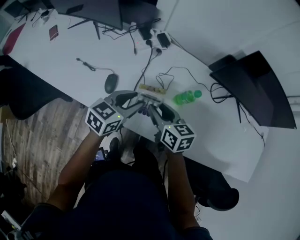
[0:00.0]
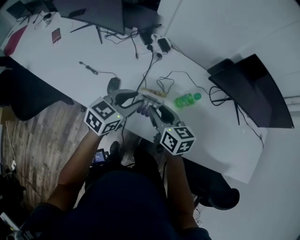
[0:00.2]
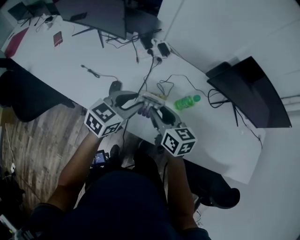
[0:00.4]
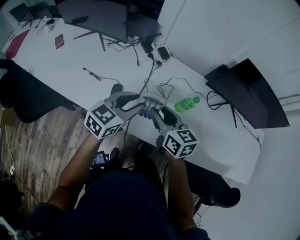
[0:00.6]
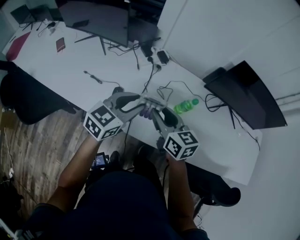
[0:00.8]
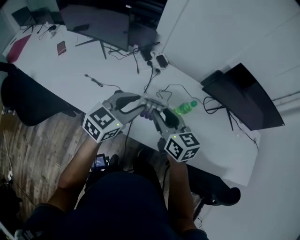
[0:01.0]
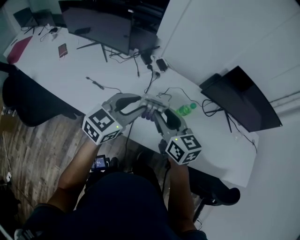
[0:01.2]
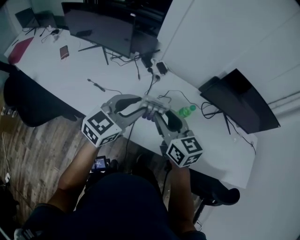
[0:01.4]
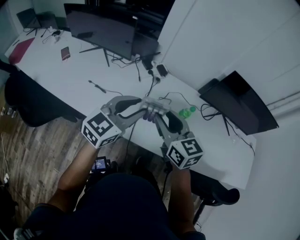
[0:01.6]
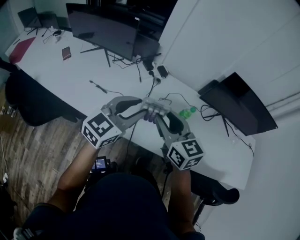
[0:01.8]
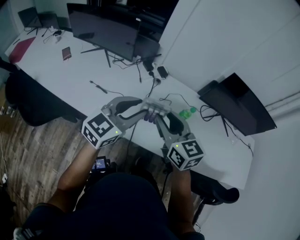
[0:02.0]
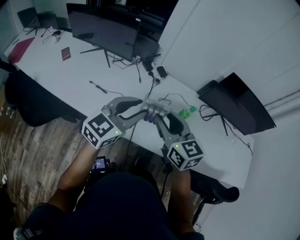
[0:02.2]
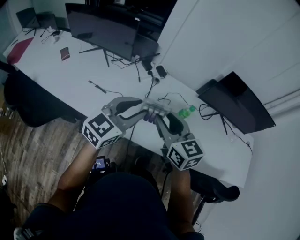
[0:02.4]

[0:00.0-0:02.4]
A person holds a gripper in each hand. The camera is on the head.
0:00.0 to 0:01.2: The grippers both shift upward by roughly 15 cm.
0:01.2 to 0:02.4: The right gripper moves some 5 cm; the left gripper changes place by some 5 cm.

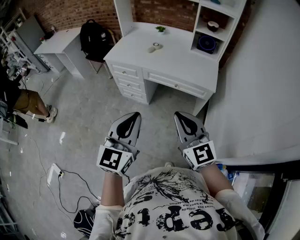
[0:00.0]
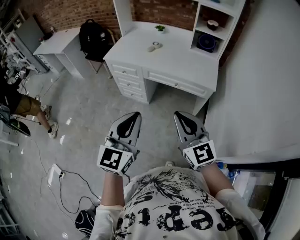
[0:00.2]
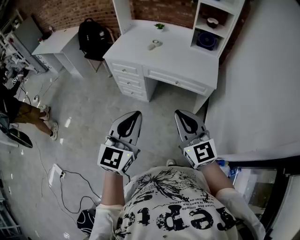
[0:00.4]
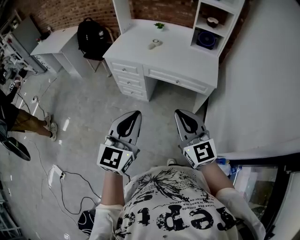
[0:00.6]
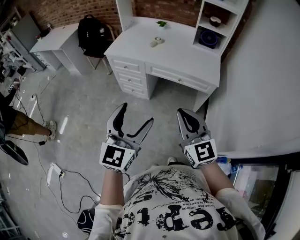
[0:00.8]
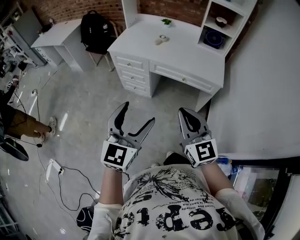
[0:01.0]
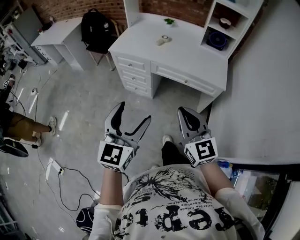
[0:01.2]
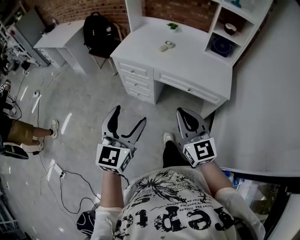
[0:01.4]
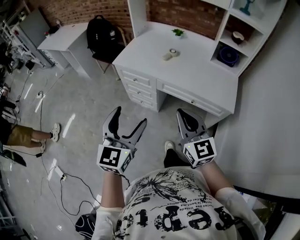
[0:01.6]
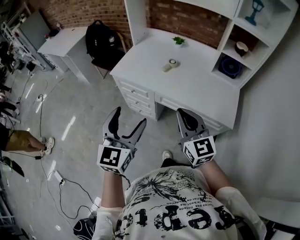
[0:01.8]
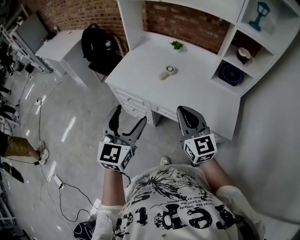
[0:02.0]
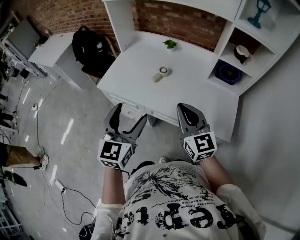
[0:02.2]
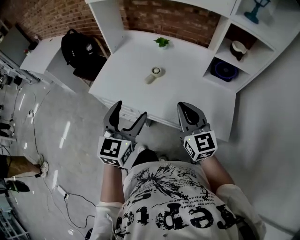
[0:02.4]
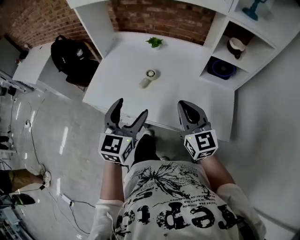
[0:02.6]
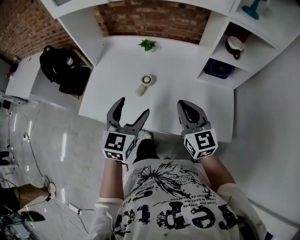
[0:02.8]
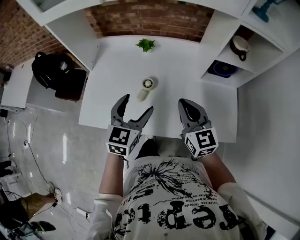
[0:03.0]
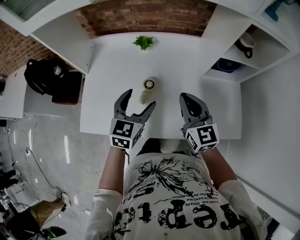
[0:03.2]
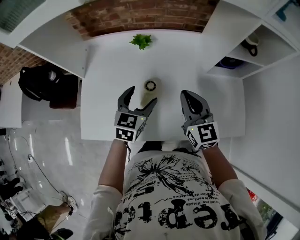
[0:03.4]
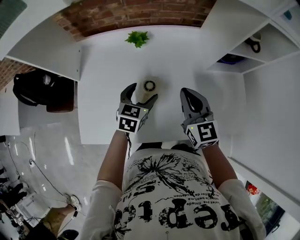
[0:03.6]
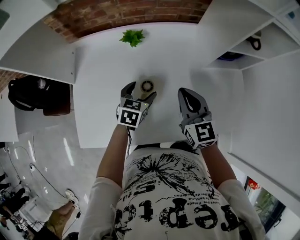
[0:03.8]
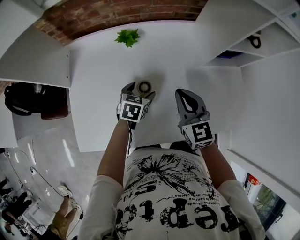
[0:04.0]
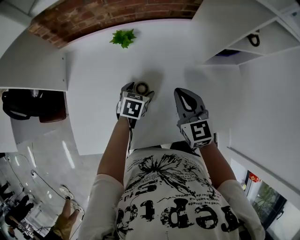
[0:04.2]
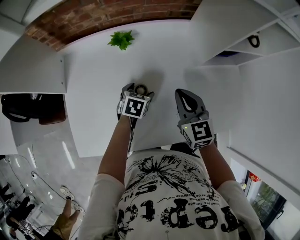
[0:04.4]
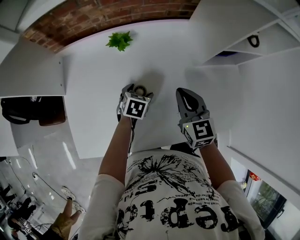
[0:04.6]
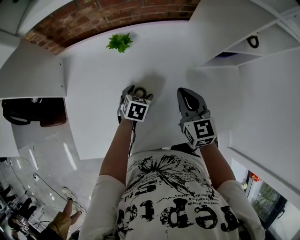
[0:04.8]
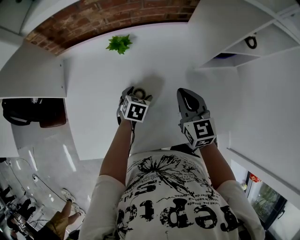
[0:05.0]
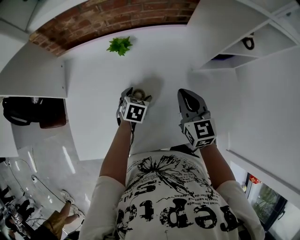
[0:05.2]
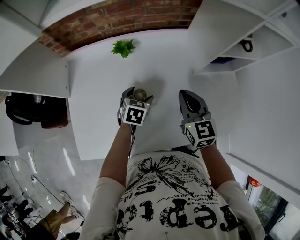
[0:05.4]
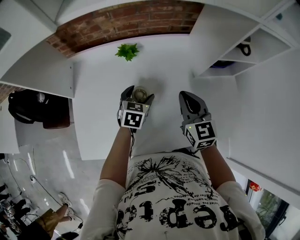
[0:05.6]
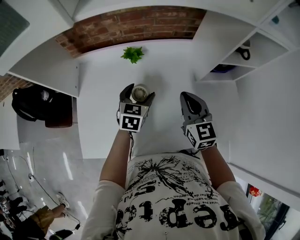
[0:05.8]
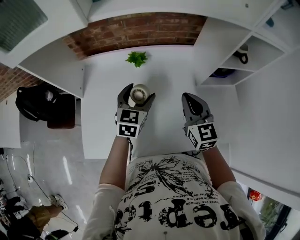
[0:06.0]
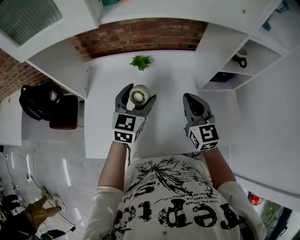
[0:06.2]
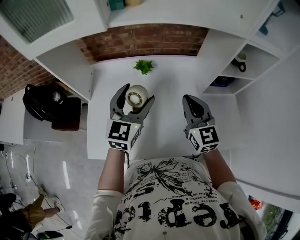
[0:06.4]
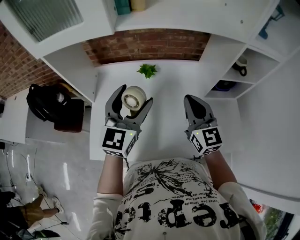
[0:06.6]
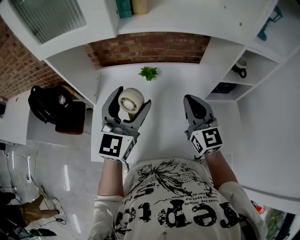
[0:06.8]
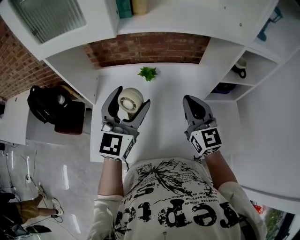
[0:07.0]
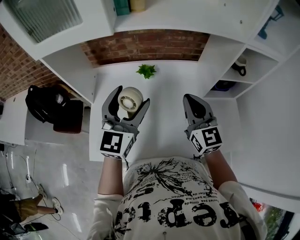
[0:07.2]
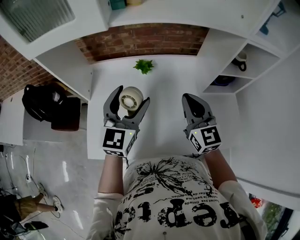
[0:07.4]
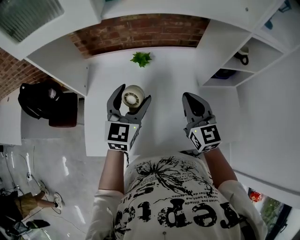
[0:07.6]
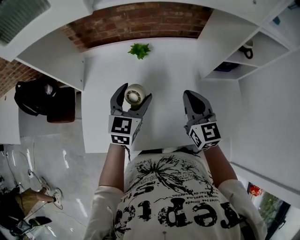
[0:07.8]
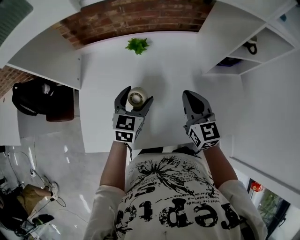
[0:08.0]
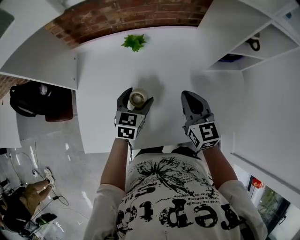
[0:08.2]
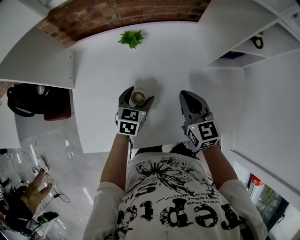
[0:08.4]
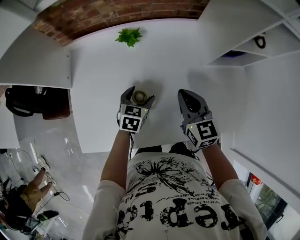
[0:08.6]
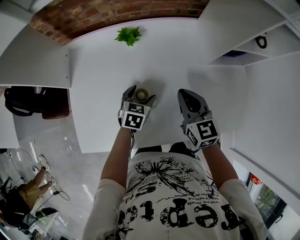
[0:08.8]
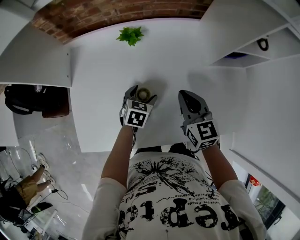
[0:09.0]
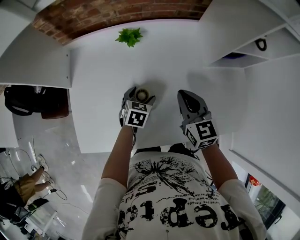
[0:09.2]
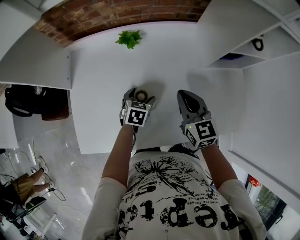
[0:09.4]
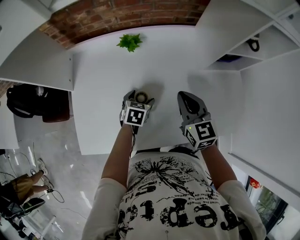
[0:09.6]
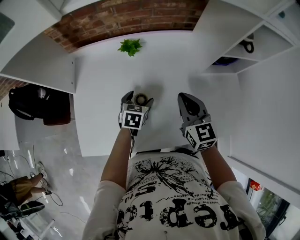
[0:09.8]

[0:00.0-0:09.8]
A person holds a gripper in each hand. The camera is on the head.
0:00.0 to 0:01.4: The left gripper shifts about 15 cm to the left and forward, and opens up. Meanwhile the right gripper heads forward and to the left, covering approximately 15 cm.
0:01.4 to 0:02.8: Both grippers are carried forward, about 60 cm.
0:02.8 to 0:04.2: The left gripper goes about 30 cm downward, and tilts its fingers some 40 degrees downward. Meanwhile the right gripper changes place by roughly 25 cm, and turns by approximately 20 degrees.
0:04.2 to 0:05.6: The left gripper goes approximately 5 cm upward.
0:05.6 to 0:07.0: The left gripper heads upward, covering roughly 30 cm, and tilts its fingers approximately 40 degrees upward. Meanwhile the right gripper shifts about 15 cm upward.
0:07.0 to 0:08.4: The right gripper heads downward, covering some 15 cm, and turns by roughly 20 degrees. The left gripper shifts approximately 30 cm downward, and angles its fingers downward, by approximately 40 degrees.

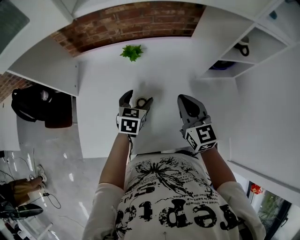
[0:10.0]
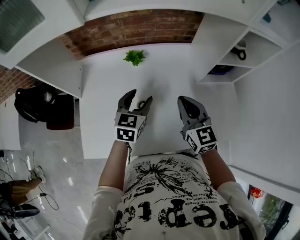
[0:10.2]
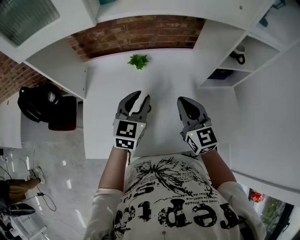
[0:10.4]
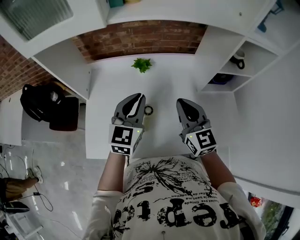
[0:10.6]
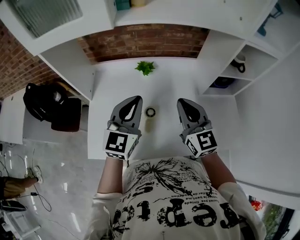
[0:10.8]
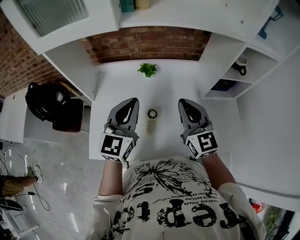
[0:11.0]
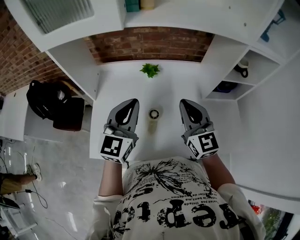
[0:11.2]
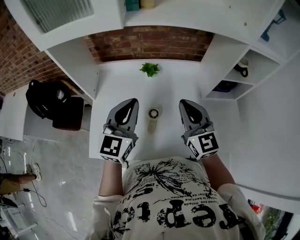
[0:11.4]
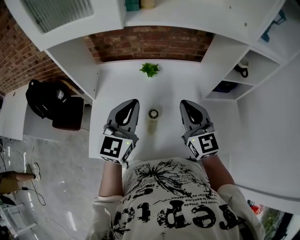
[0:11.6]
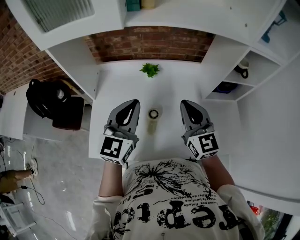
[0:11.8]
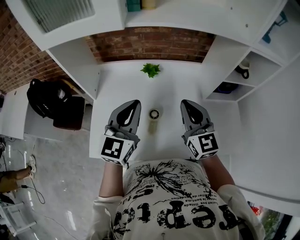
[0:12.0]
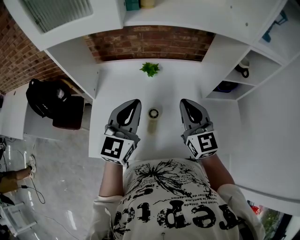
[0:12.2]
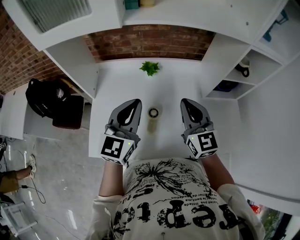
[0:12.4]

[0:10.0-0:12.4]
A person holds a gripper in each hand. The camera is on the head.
0:10.0 to 0:11.2: The right gripper goes roughly 10 cm upward and to the left; the left gripper moves upward, approximately 25 cm, points its fingers approximately 40 degrees further upward, and closes its fingers.
0:11.2 to 0:12.4: Neither gripper changes place.

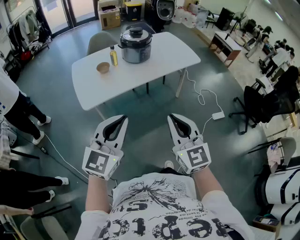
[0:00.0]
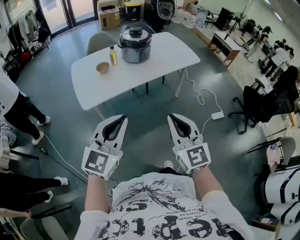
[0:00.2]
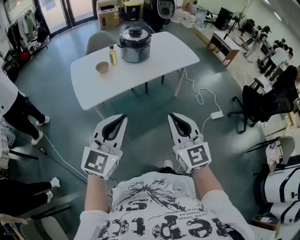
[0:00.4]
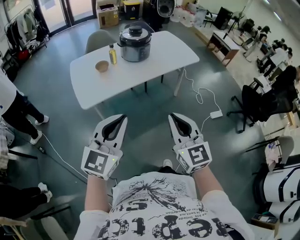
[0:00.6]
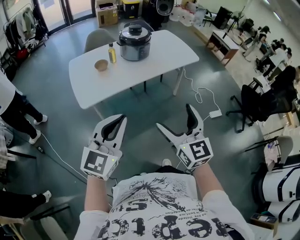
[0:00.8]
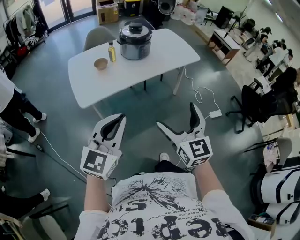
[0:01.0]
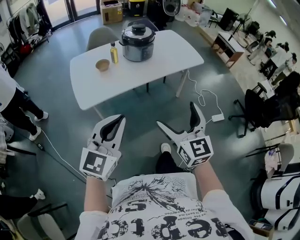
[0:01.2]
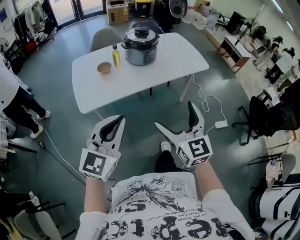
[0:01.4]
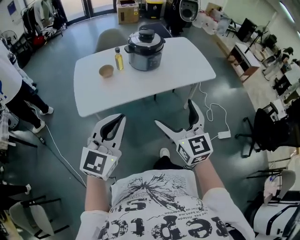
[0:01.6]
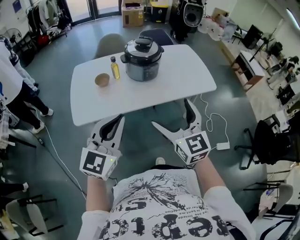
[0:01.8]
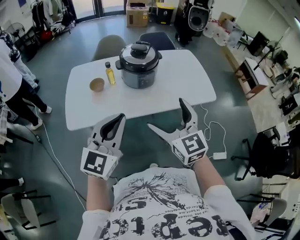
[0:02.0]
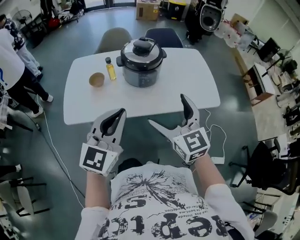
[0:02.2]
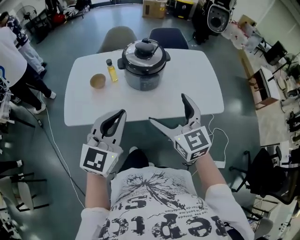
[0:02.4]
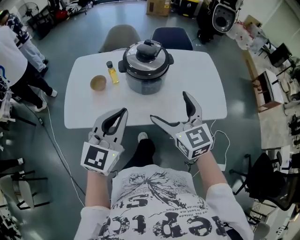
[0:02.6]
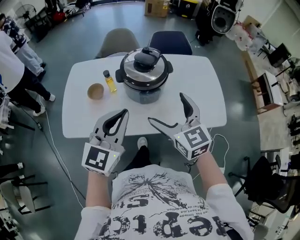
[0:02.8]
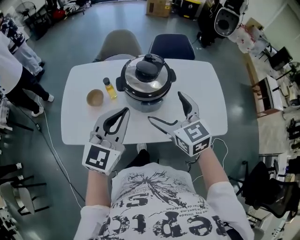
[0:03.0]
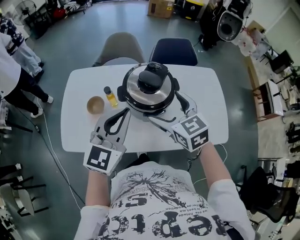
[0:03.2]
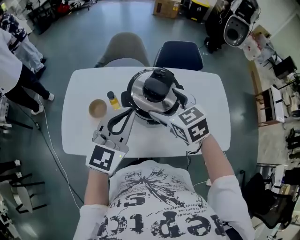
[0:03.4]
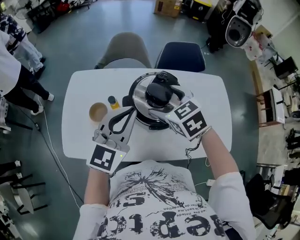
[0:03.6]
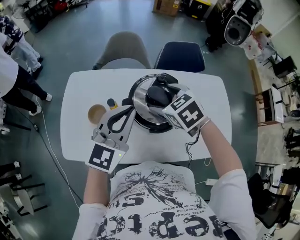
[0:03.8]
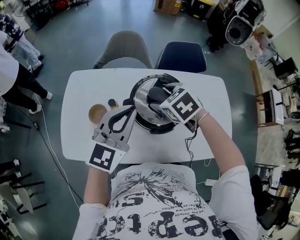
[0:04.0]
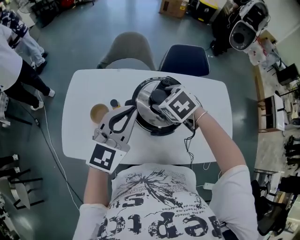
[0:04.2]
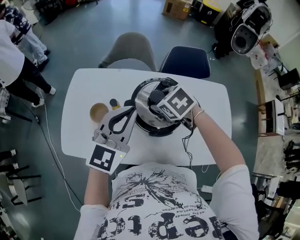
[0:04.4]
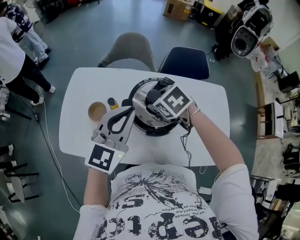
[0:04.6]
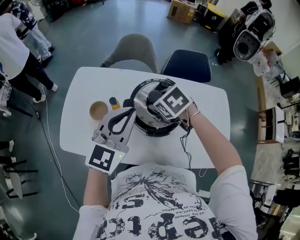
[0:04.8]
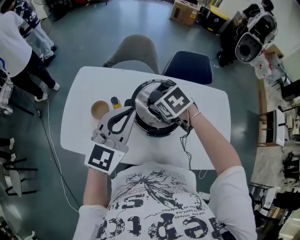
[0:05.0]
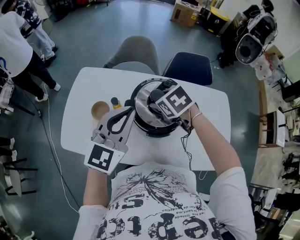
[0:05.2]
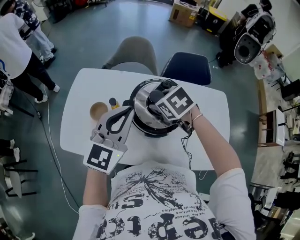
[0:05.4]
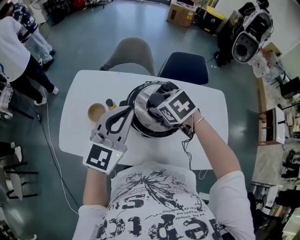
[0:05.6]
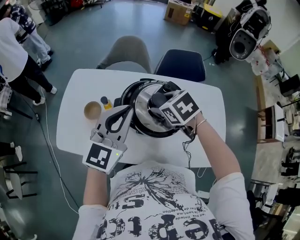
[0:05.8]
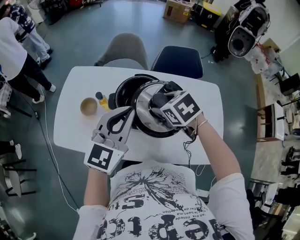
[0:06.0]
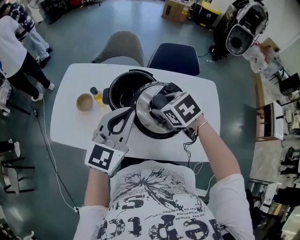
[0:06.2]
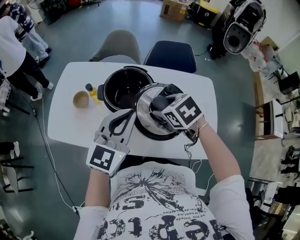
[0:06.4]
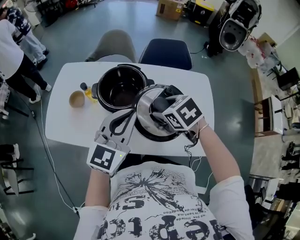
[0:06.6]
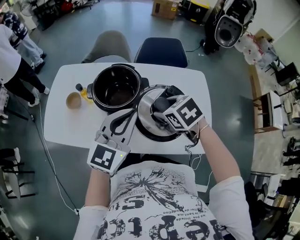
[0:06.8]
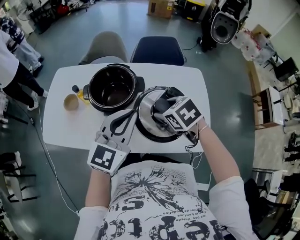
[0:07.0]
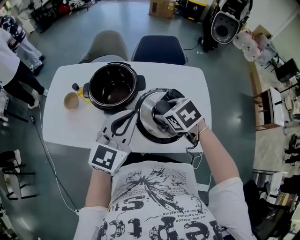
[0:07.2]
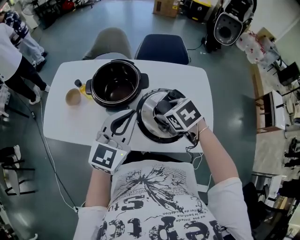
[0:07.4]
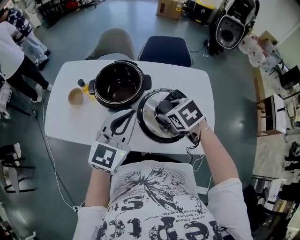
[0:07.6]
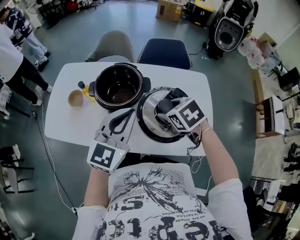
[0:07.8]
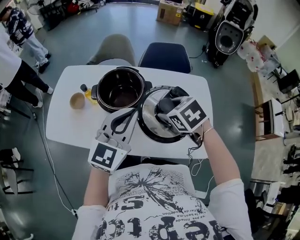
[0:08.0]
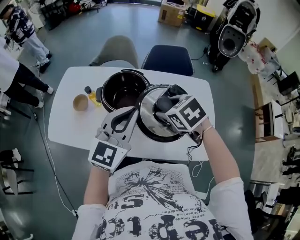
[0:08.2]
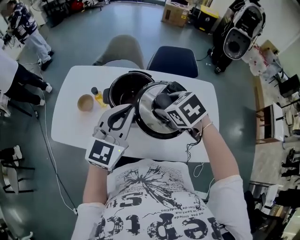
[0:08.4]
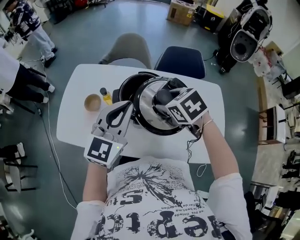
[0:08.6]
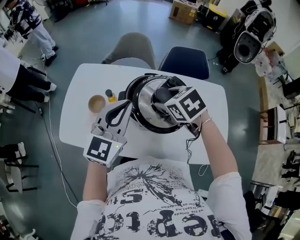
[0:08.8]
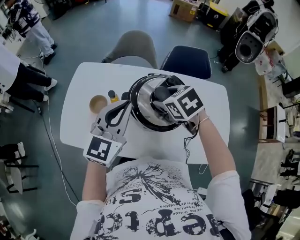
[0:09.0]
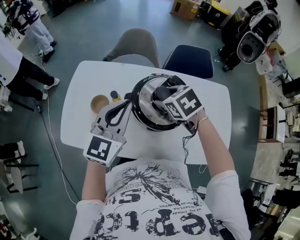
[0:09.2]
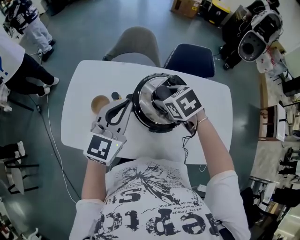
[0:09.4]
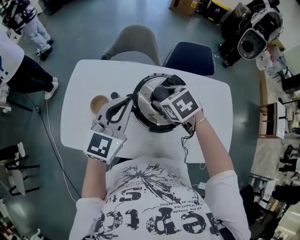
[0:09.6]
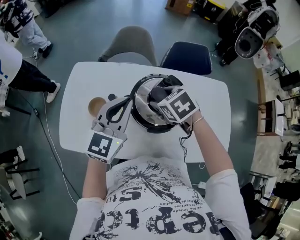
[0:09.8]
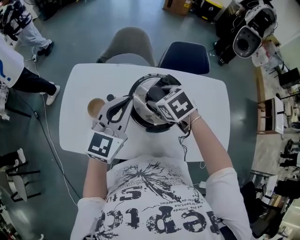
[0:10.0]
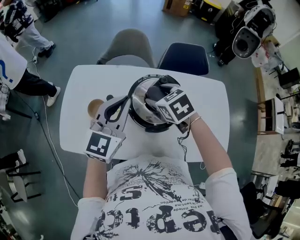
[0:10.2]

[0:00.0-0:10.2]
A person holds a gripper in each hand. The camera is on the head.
0:00.0 to 0:01.4: The grippers both shift forward by about 10 cm. The right gripper opens its fingers.
0:01.4 to 0:03.0: The pair of grippers is taken roughly 60 cm. The right gripper changes its angle by some 30 degrees.
0:03.0 to 0:04.4: Both grippers travel together forward, about 20 cm. The right gripper angles its fingers downward, by approximately 40 degrees, and closes up.
0:04.4 to 0:05.8: The left gripper ends up about 5 cm from where it was; the right gripper moves to the right, about 5 cm.
0:05.8 to 0:07.2: The grippers both shift to the right and backward by about 25 cm.
0:07.2 to 0:08.8: The right gripper is displaced to the left, forward and upward by roughly 25 cm. The left gripper shifts some 25 cm to the left and forward.
0:08.8 to 0:10.2: Both grippers move forward, some 5 cm.
